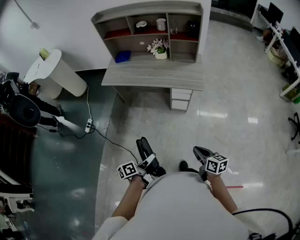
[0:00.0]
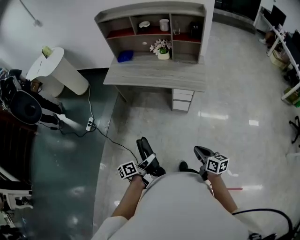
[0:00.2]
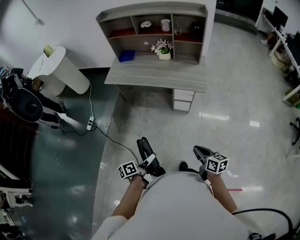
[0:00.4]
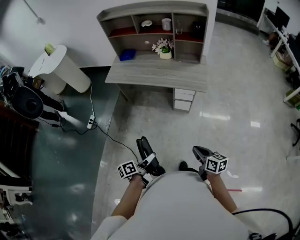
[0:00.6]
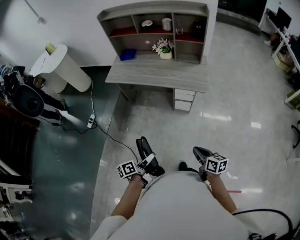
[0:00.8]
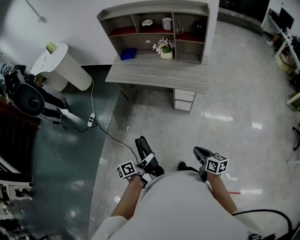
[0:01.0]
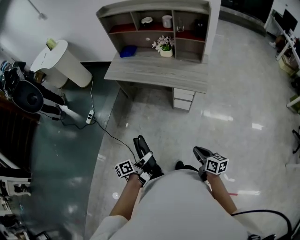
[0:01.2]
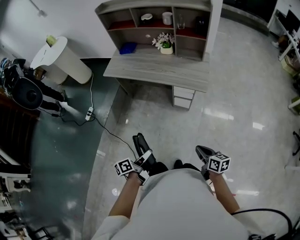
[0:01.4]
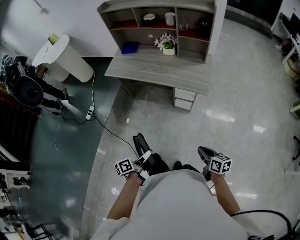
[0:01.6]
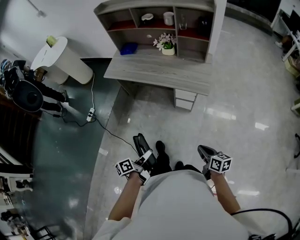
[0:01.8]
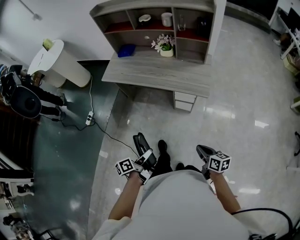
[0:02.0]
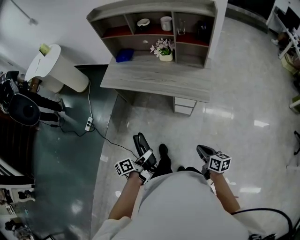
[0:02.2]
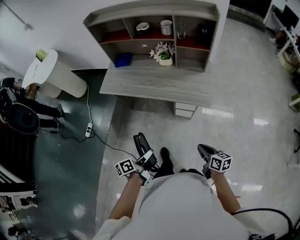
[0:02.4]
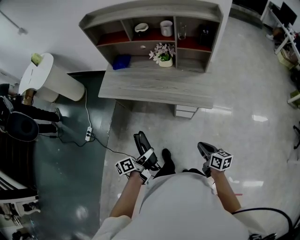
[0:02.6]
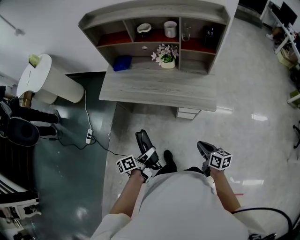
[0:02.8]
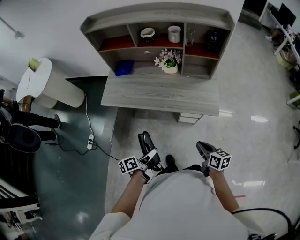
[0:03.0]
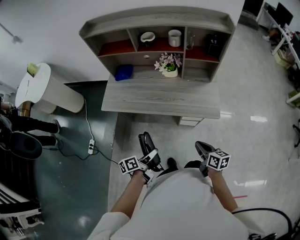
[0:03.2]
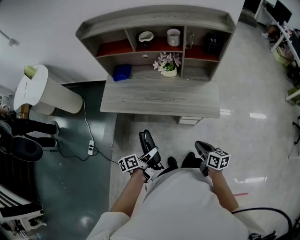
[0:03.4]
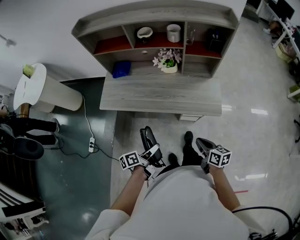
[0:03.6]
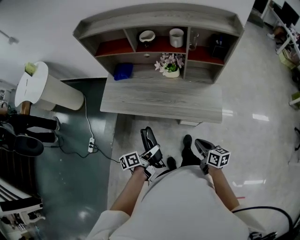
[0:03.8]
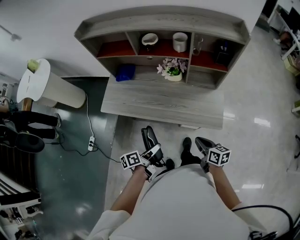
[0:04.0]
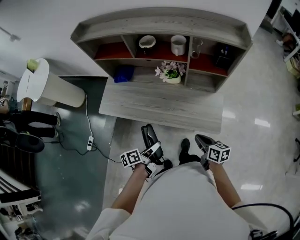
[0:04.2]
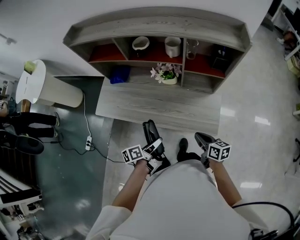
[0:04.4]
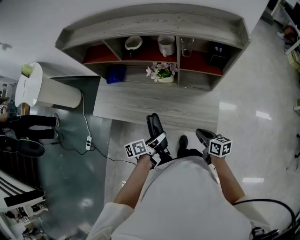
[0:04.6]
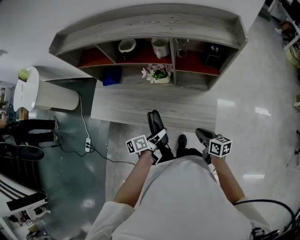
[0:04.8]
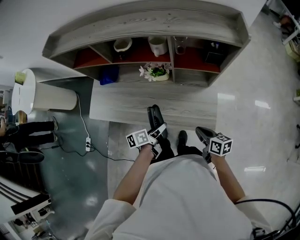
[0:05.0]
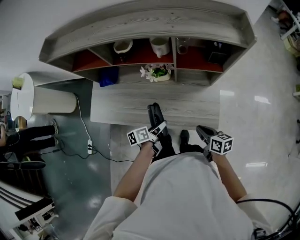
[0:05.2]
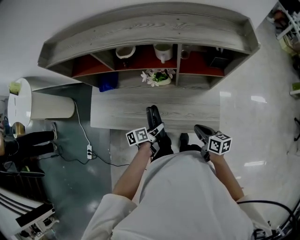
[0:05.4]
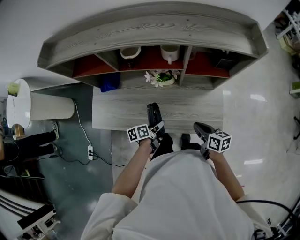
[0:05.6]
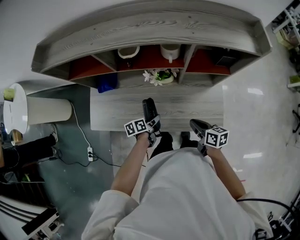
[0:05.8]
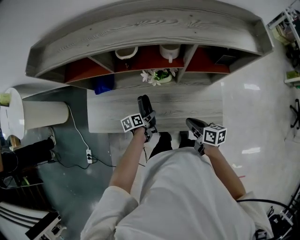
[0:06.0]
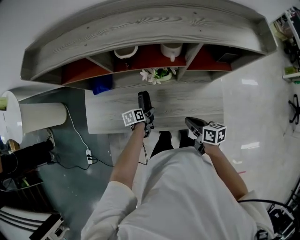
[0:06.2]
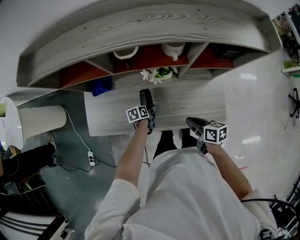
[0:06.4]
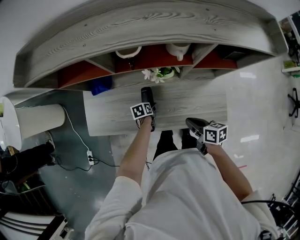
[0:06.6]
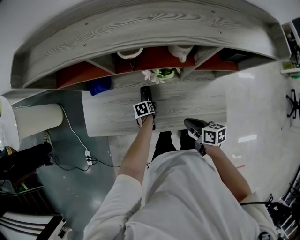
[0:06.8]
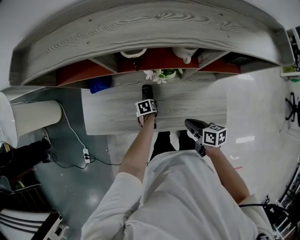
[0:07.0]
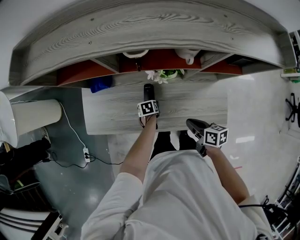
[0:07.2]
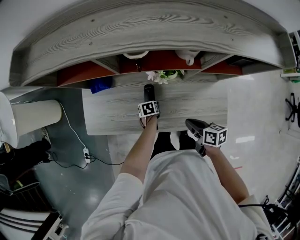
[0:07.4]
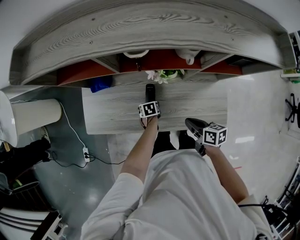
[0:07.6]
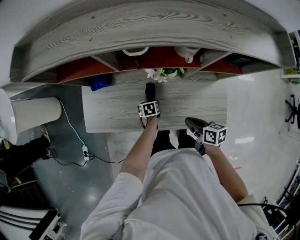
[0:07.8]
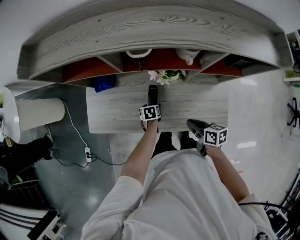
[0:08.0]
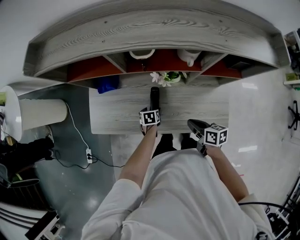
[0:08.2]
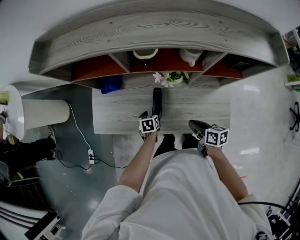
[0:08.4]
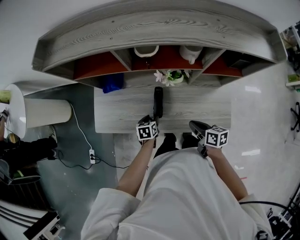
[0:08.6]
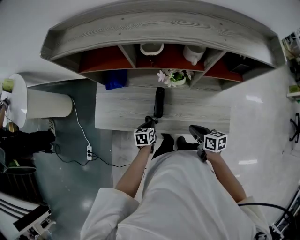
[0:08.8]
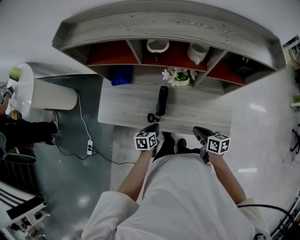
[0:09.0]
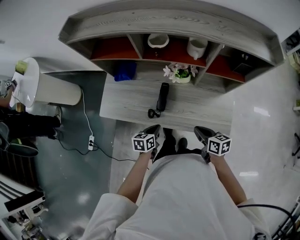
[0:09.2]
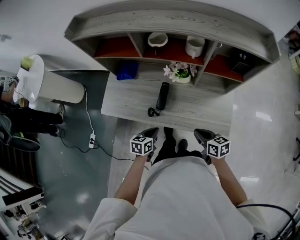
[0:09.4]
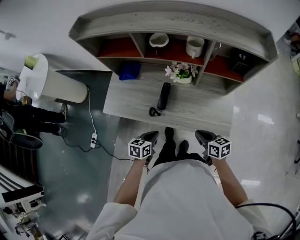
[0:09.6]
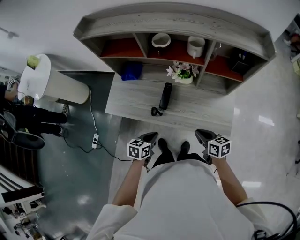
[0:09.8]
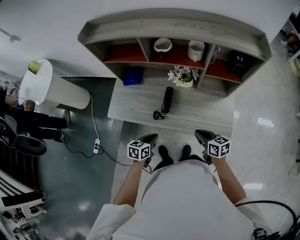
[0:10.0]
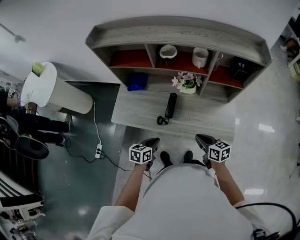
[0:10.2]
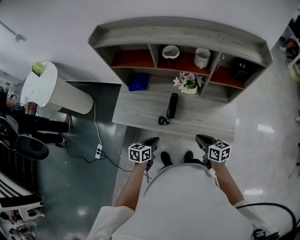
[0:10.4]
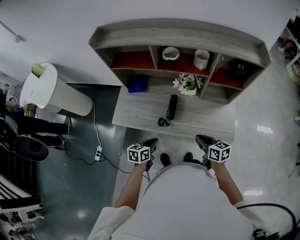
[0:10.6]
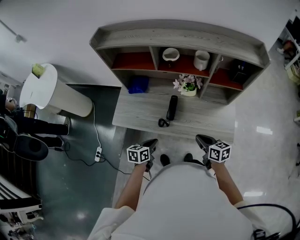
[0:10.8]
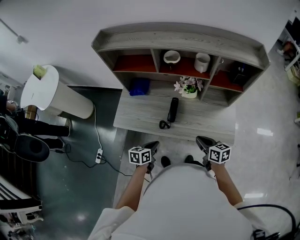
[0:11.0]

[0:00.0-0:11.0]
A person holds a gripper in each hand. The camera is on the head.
0.0 to 1.6 s: The right gripper shifts by approximately 10 cm.
1.6 to 3.2 s: The right gripper moves roughly 30 cm.
3.2 to 4.8 s: The right gripper ends up approximately 25 cm from where it was.
4.8 to 6.2 s: The right gripper shifts by roughly 15 cm.
7.8 to 9.4 s: The right gripper changes place by about 10 cm, and changes its angle by roughly 20 degrees.
9.4 to 11.0 s: The right gripper moves some 5 cm.

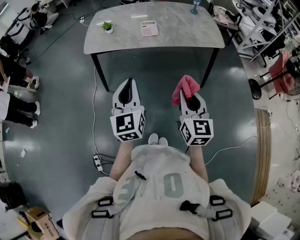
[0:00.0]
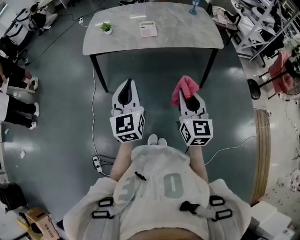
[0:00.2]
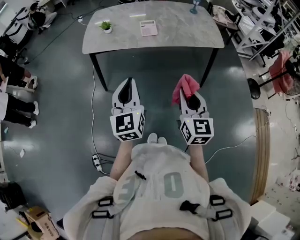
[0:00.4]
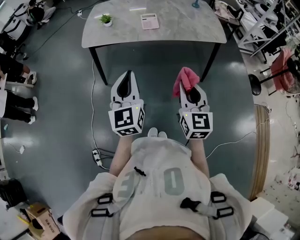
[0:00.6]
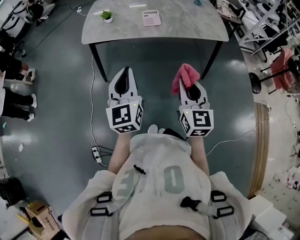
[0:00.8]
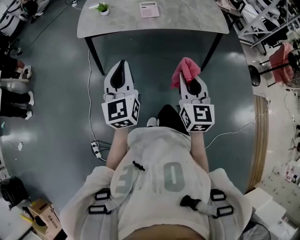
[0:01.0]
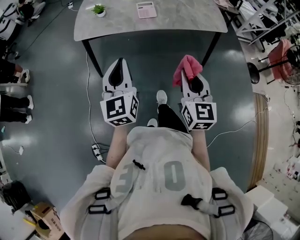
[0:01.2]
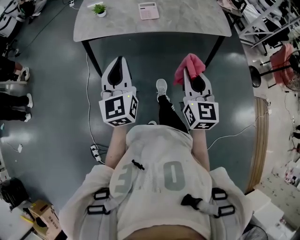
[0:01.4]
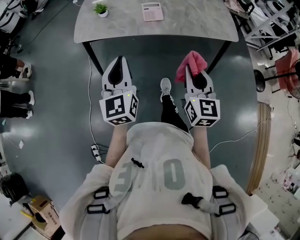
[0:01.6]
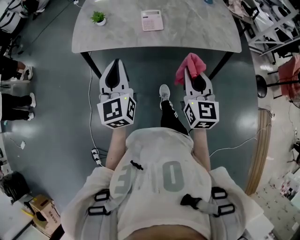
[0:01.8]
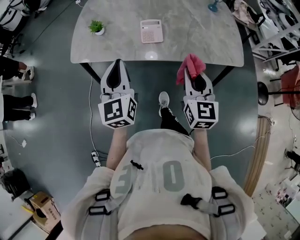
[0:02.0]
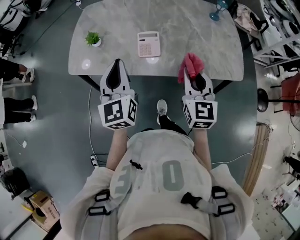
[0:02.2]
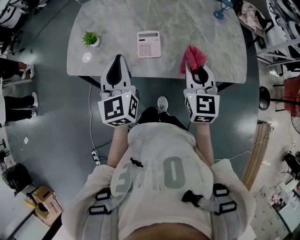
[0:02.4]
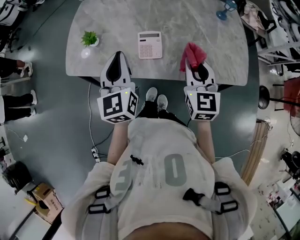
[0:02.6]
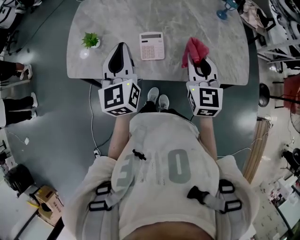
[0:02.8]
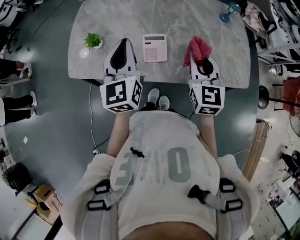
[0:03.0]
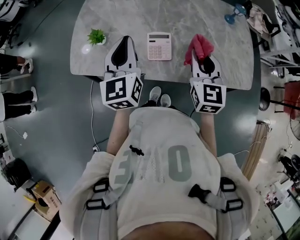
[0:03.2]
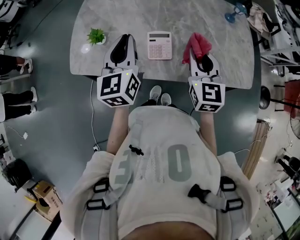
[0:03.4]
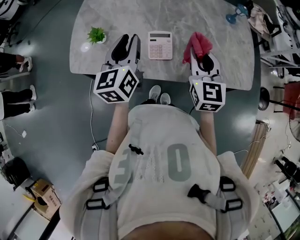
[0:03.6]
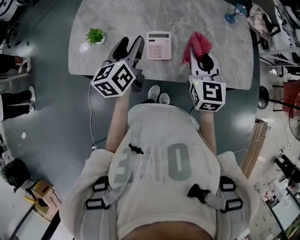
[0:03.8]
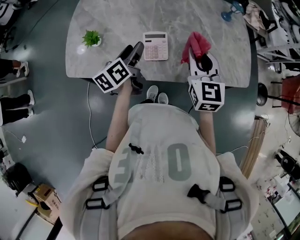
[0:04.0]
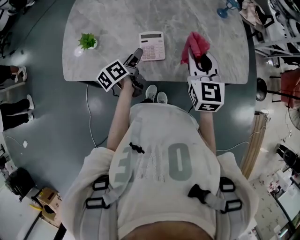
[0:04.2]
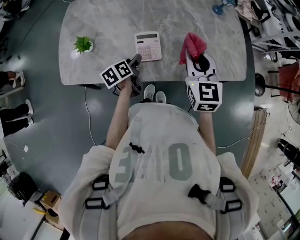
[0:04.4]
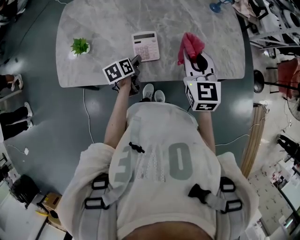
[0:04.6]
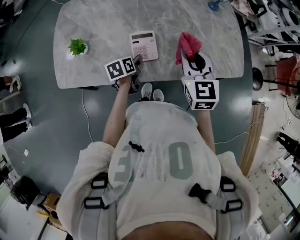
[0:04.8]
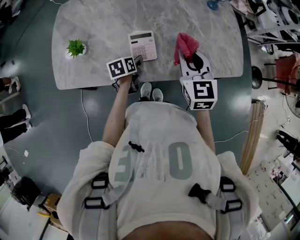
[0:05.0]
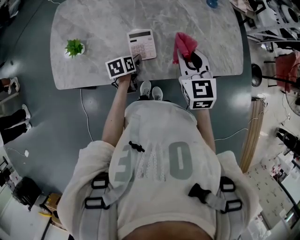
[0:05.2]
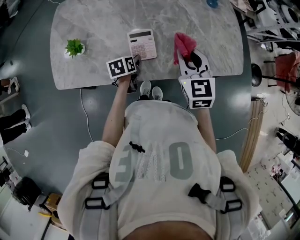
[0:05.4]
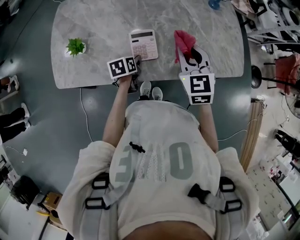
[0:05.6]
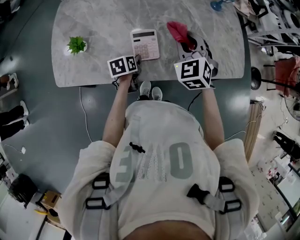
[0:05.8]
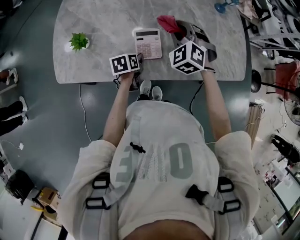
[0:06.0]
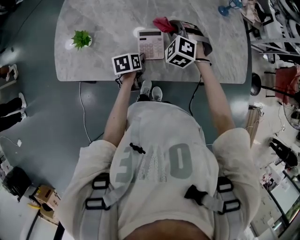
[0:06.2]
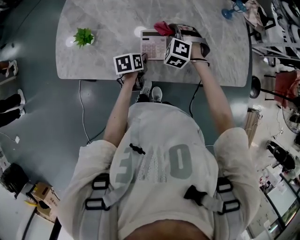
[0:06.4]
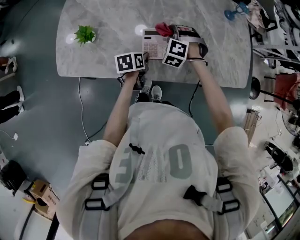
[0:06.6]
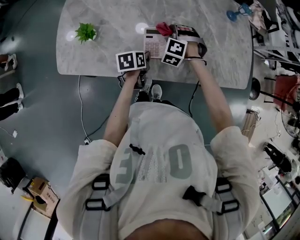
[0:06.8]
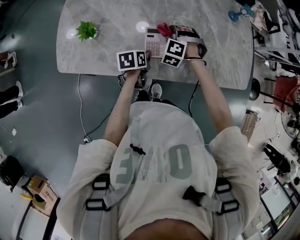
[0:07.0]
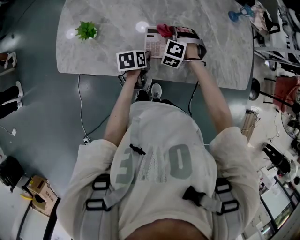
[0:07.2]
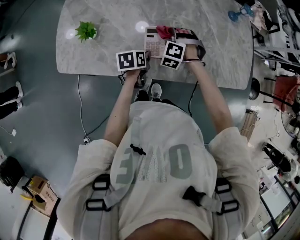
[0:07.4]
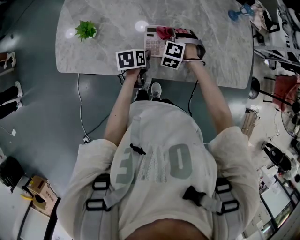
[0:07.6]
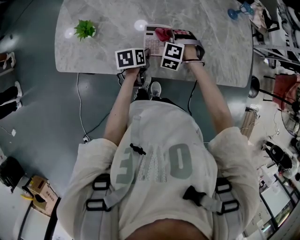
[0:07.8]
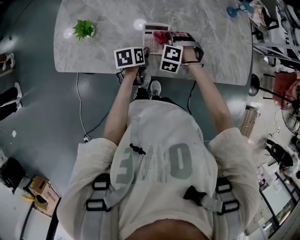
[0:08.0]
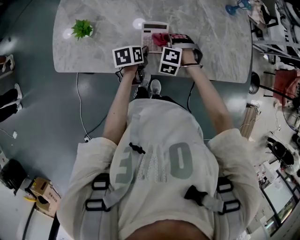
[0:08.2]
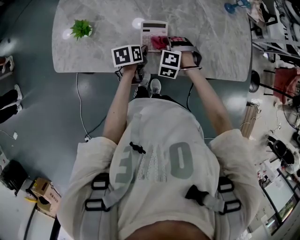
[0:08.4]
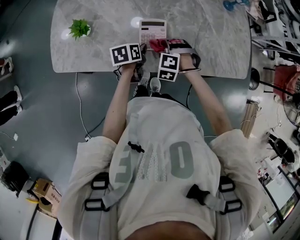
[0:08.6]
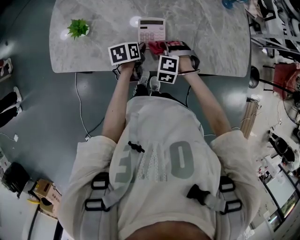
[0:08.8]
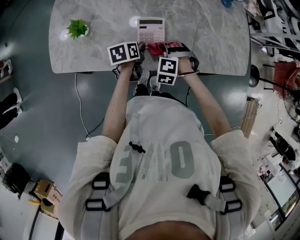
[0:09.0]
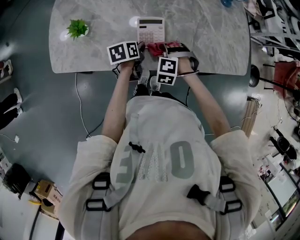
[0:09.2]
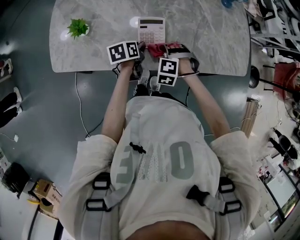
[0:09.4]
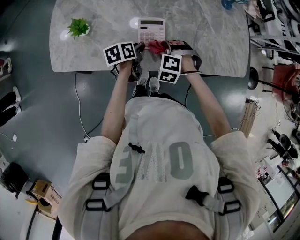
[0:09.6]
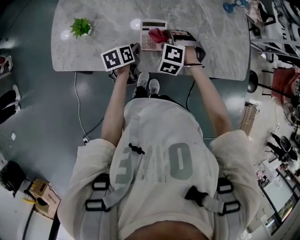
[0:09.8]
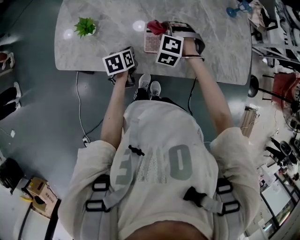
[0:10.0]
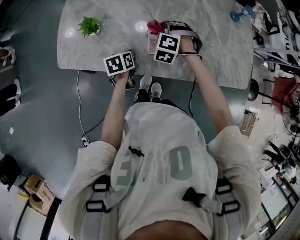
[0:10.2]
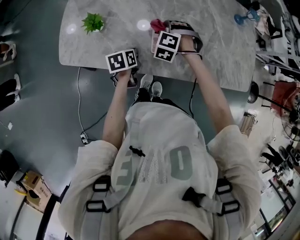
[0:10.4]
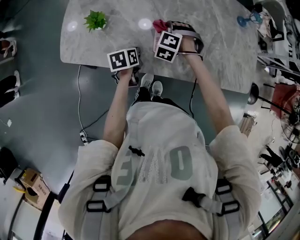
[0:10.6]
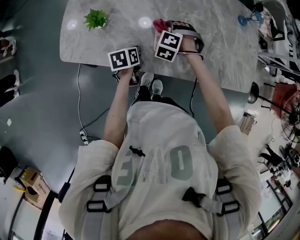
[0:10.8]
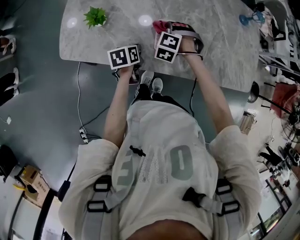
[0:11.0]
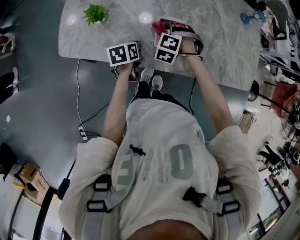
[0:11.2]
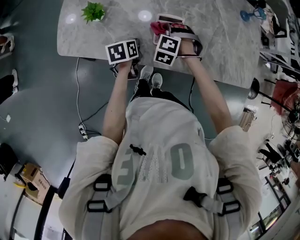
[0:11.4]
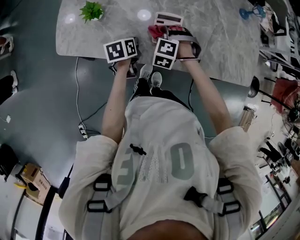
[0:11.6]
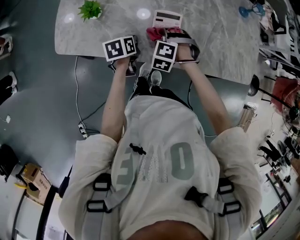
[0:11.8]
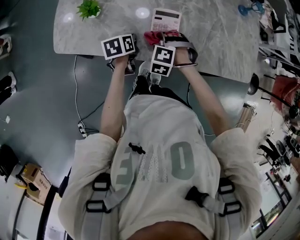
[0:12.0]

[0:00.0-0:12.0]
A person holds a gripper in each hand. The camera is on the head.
0.0 to 1.6 s: The grippers both shift forward by approximately 15 cm.
1.6 to 3.0 s: The grippers both shift forward by about 40 cm.
3.0 to 4.4 s: The left gripper travels downward by roughly 25 cm, tips its fingers downward by some 40 degrees, and opens.
4.4 to 6.0 s: The right gripper moves forward, downward and to the left, about 15 cm, and rotates around the line of its fingers by about 50 degrees, counterclockwise from behind, while the left gripper is displaced downward by some 5 cm, turns by some 20 degrees, and closes its fingers.
6.0 to 7.6 s: The right gripper shifts roughly 15 cm downward, and turns by approximately 30 degrees.
7.6 to 9.0 s: The right gripper shifts about 10 cm backward.
9.0 to 10.4 s: The left gripper heads to the left, covering roughly 10 cm, and closes; the right gripper heads forward and to the left, covering some 15 cm.
10.4 to 12.0 s: The right gripper travels backward by some 10 cm.

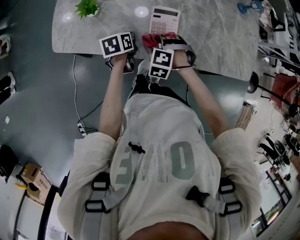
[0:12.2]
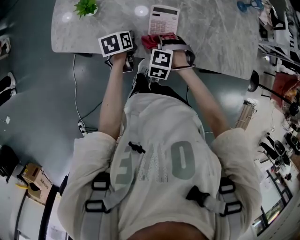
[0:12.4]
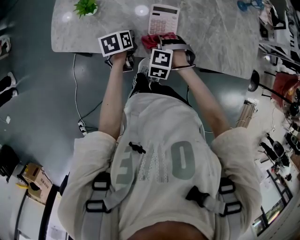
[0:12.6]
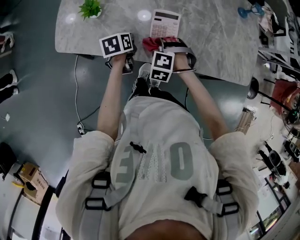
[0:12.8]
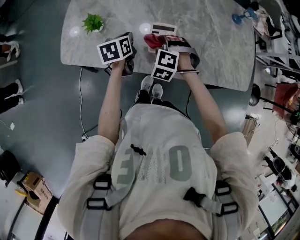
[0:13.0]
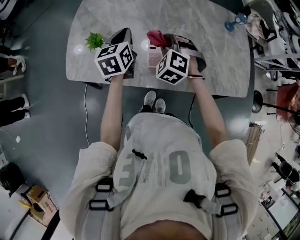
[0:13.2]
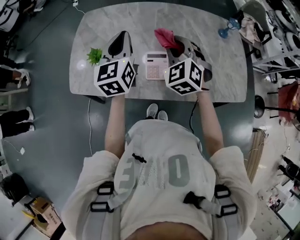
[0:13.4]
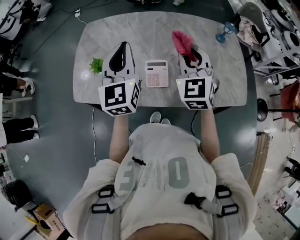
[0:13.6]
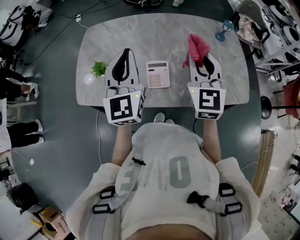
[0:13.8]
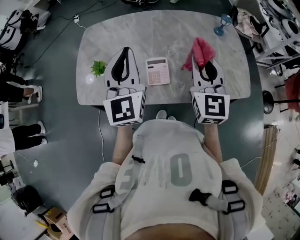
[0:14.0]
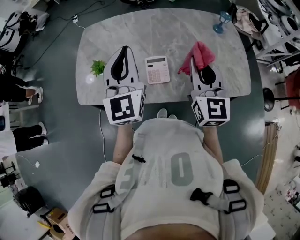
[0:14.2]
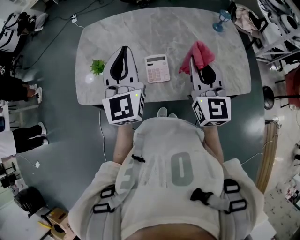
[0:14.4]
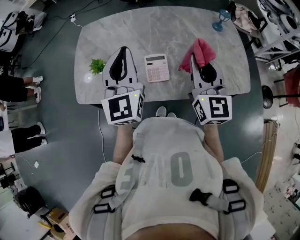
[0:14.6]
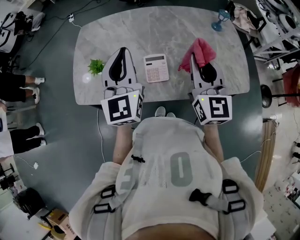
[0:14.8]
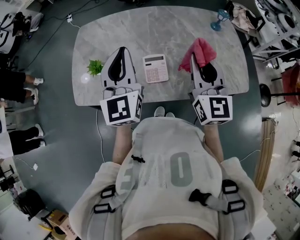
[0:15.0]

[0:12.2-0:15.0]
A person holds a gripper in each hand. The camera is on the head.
12.2 to 13.6 s: The two grippers go roughly 35 cm upward. The left gripper tips its fingers upward by some 50 degrees. Meanwhile the right gripper points its fingers approximately 50 degrees further upward.
13.6 to 15.0 s: The right gripper shifts roughly 5 cm backward, and turns by about 30 degrees.
